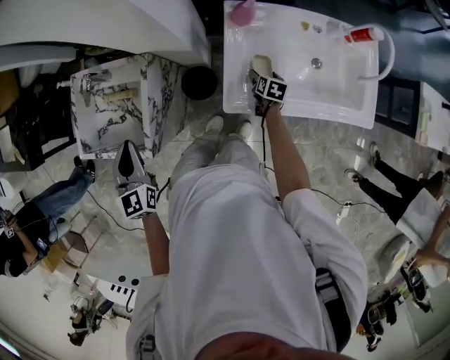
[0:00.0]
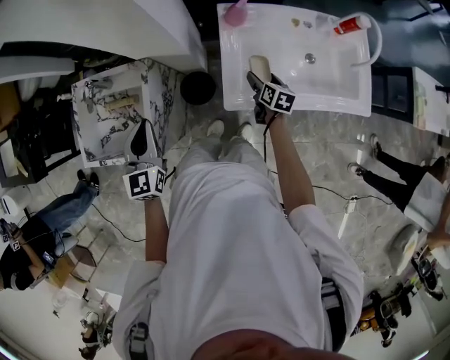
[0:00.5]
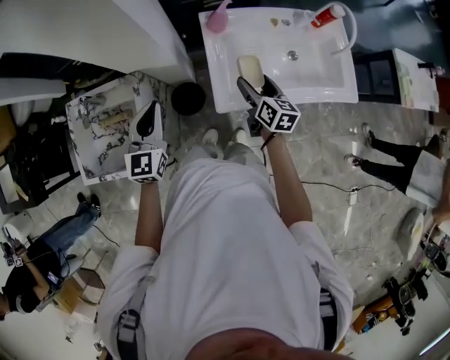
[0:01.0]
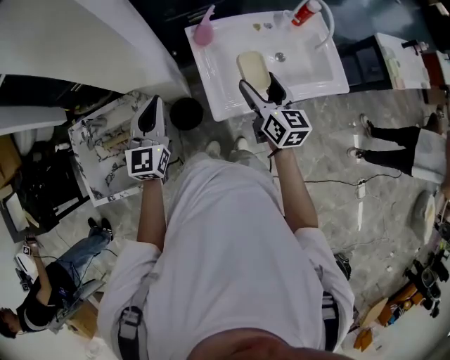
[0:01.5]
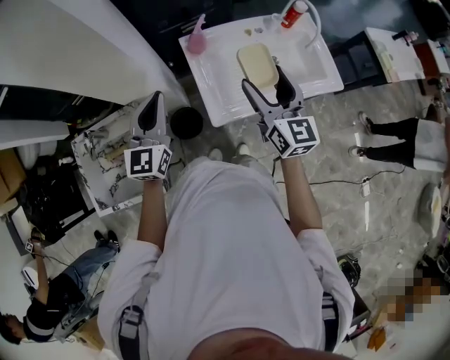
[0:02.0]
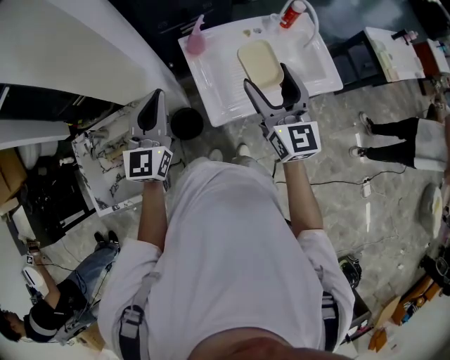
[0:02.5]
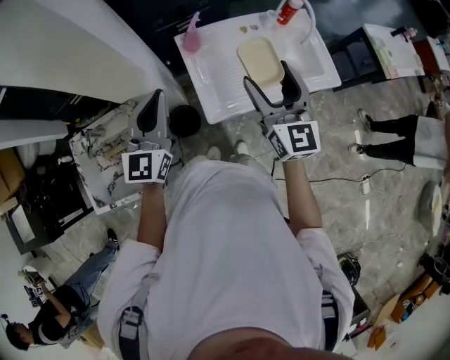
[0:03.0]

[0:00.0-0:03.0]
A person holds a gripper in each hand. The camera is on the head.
0:00.0 to 0:01.5: The right gripper moves upward, approximately 35 cm, and points its fingers about 40 degrees further upward; the left gripper moves to the right and forward, approximately 20 cm, and swivels roughly 40 degrees.
0:01.5 to 0:03.0: The left gripper goes about 10 cm upward and to the right; the right gripper moves upward, some 10 cm, and changes its angle by some 30 degrees.

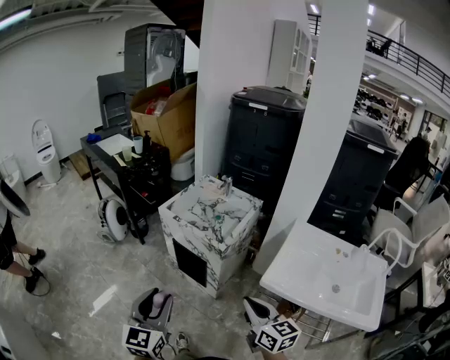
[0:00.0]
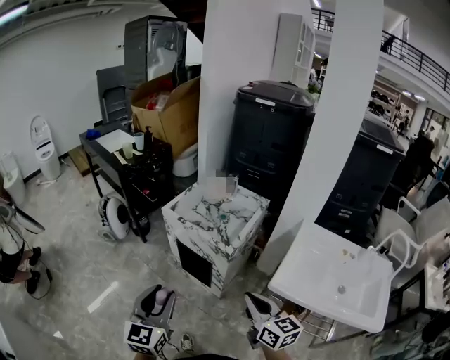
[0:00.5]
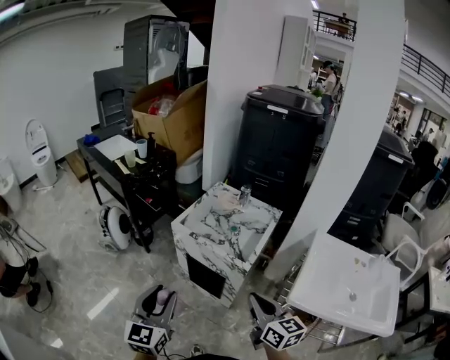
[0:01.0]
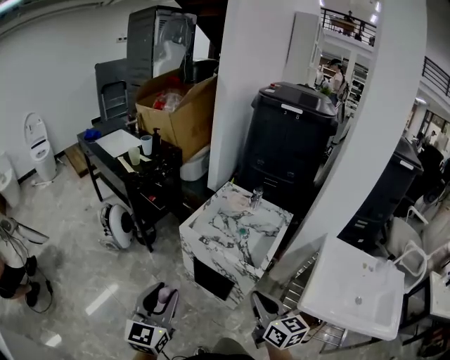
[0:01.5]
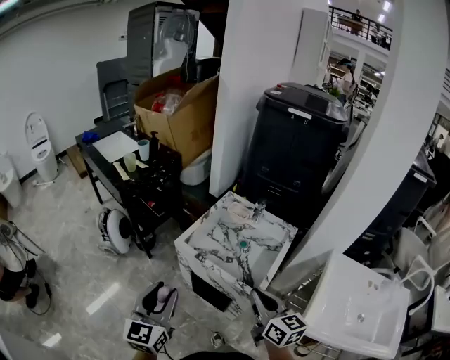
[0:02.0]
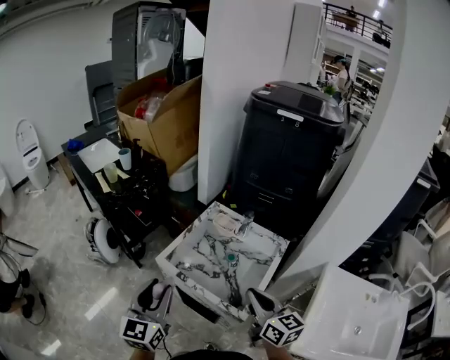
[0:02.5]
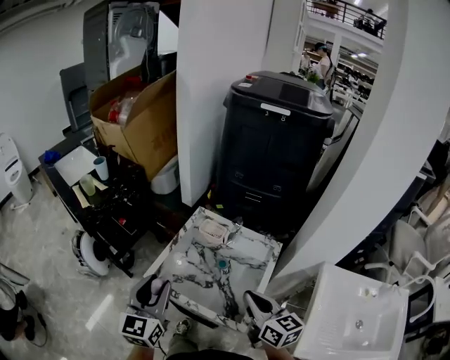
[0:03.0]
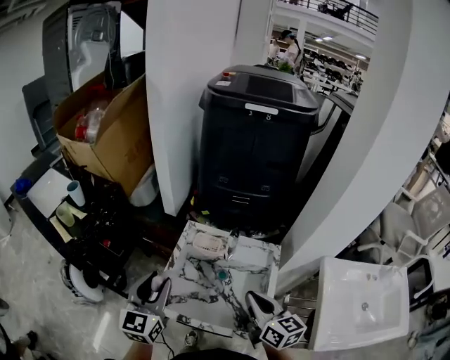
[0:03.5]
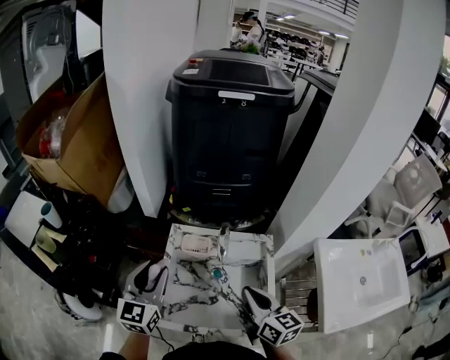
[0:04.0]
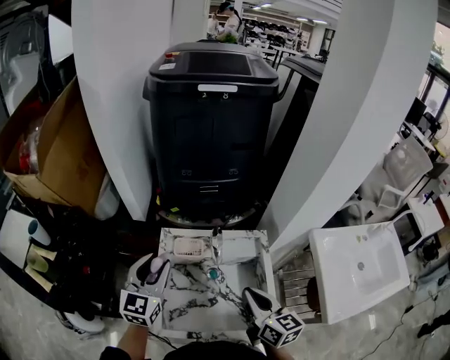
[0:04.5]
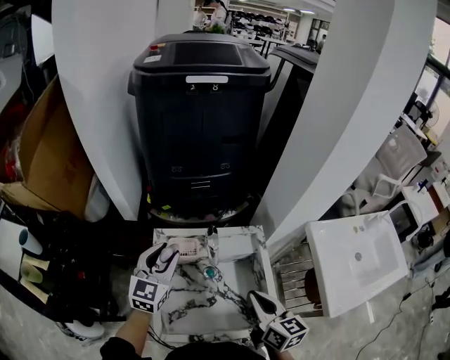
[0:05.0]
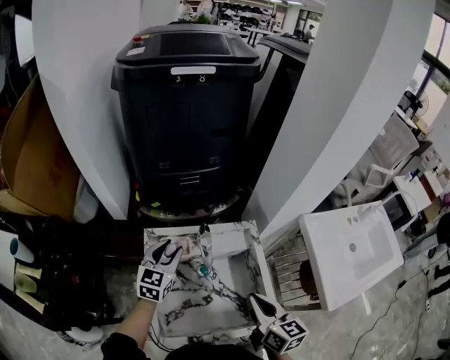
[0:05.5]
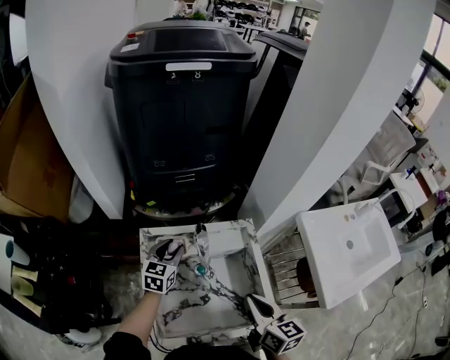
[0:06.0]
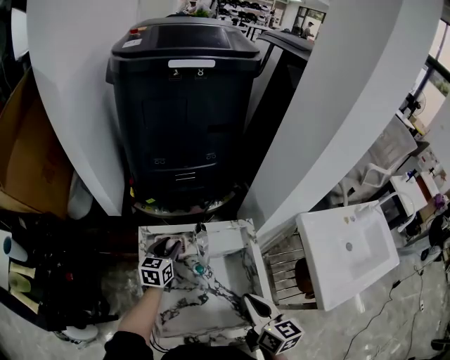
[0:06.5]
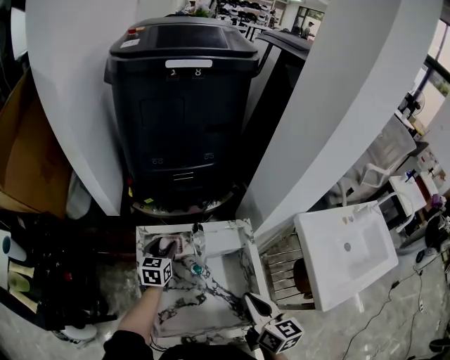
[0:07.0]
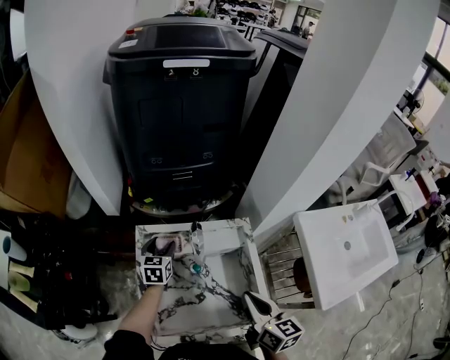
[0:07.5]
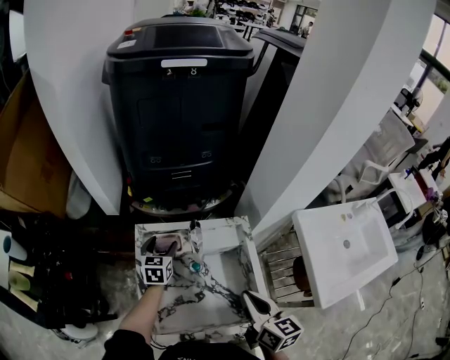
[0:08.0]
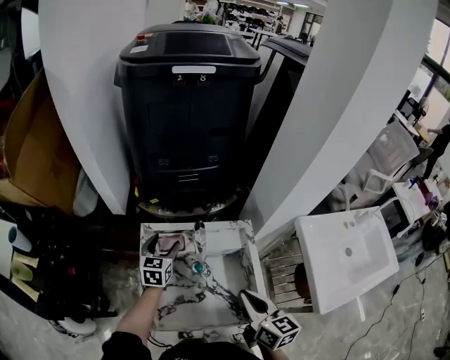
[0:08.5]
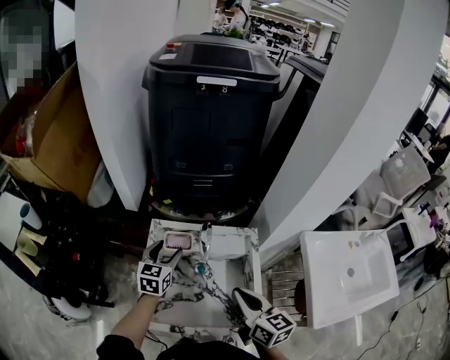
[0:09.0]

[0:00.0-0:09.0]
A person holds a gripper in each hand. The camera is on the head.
0:00.0 to 0:02.0: Both grippers travel together forward, some 30 cm.
0:02.0 to 0:04.5: The left gripper moves approximately 50 cm, and rotates roughly 40 degrees. Meanwhile the right gripper ends up approximately 25 cm from where it was, and rotates roughly 30 degrees.
0:04.5 to 0:07.0: The left gripper is displaced downward and forward by approximately 25 cm, and rotates approximately 30 degrees.
0:07.0 to 0:09.0: The left gripper goes approximately 10 cm upward and backward, and opens up.

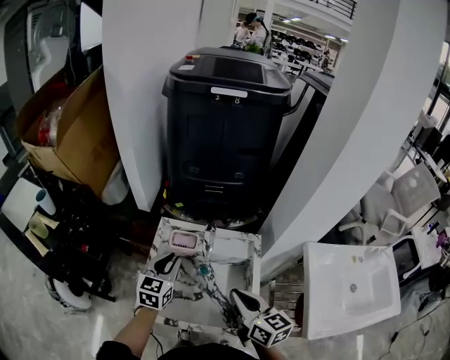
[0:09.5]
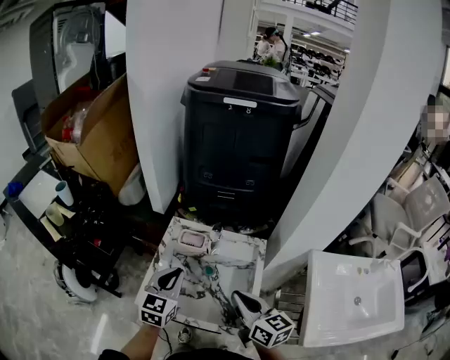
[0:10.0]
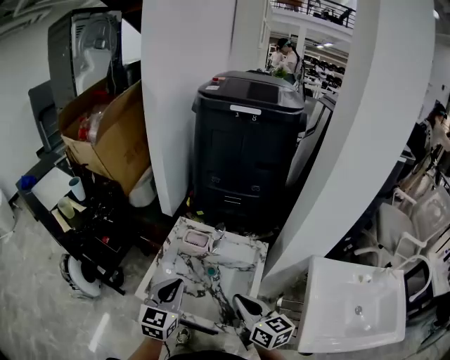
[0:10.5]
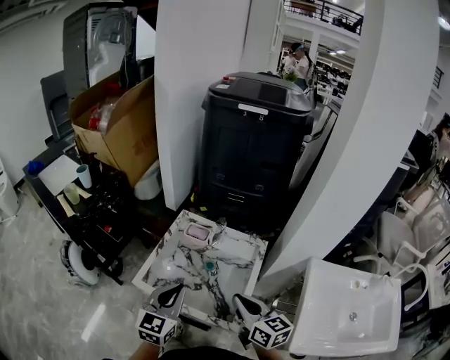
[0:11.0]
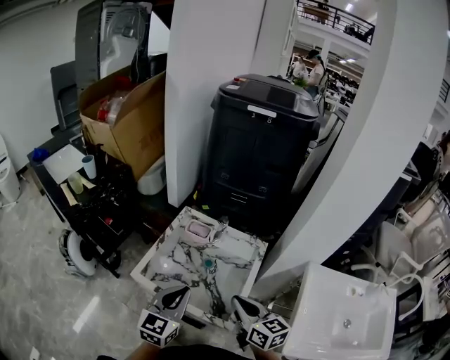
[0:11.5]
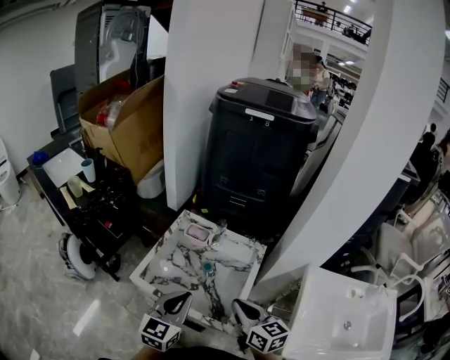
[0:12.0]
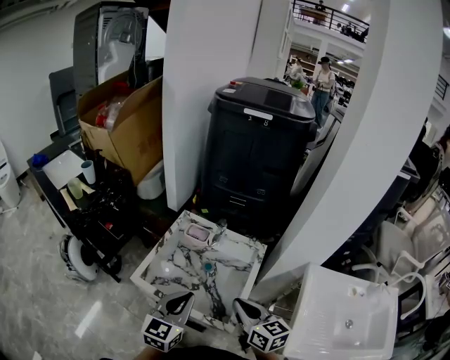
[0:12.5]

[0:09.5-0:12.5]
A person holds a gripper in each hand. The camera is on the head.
0:09.5 to 0:11.0: The left gripper heads backward, covering approximately 20 cm. The right gripper travels backward by approximately 5 cm.
0:11.0 to 0:12.5: The grippers stay close to where they were, moving slightly.

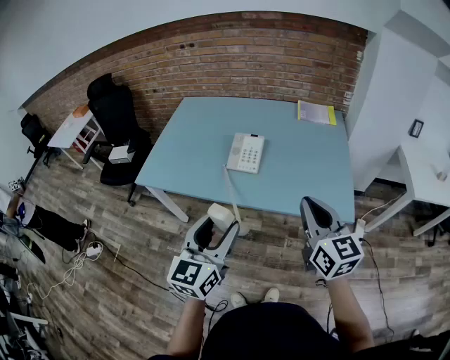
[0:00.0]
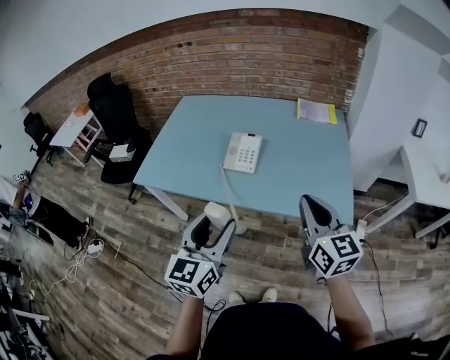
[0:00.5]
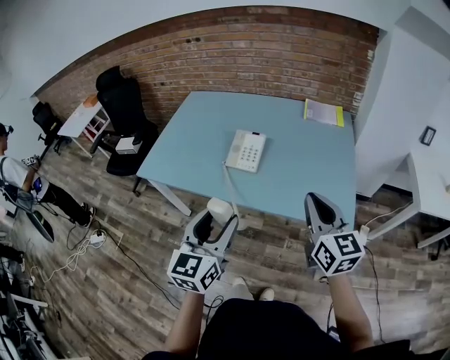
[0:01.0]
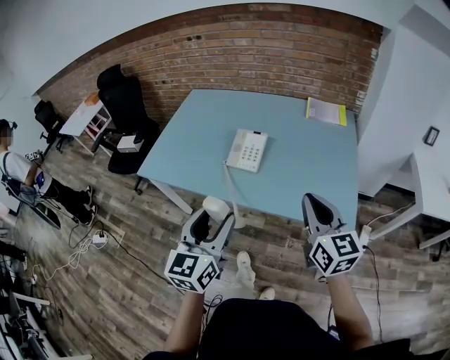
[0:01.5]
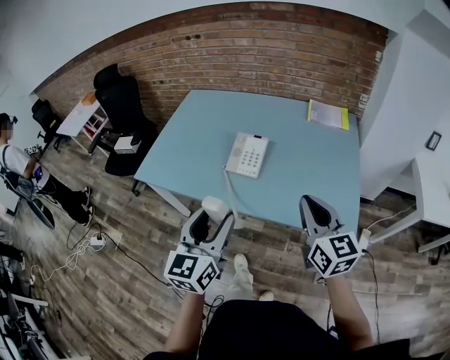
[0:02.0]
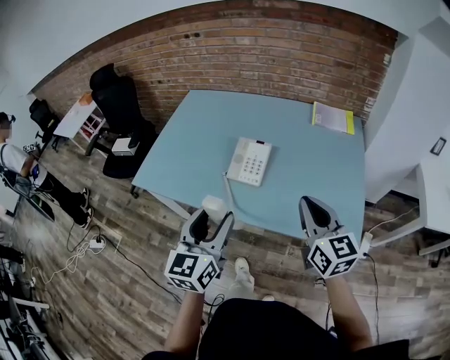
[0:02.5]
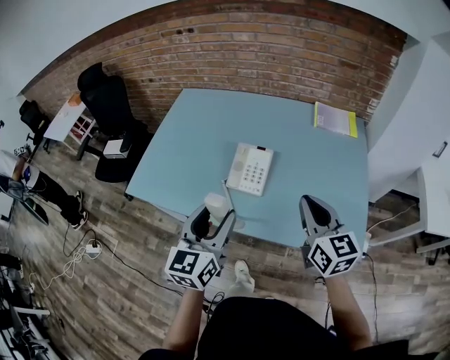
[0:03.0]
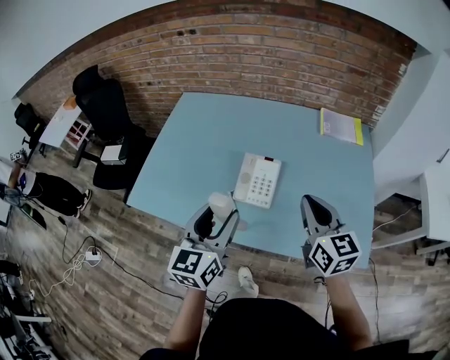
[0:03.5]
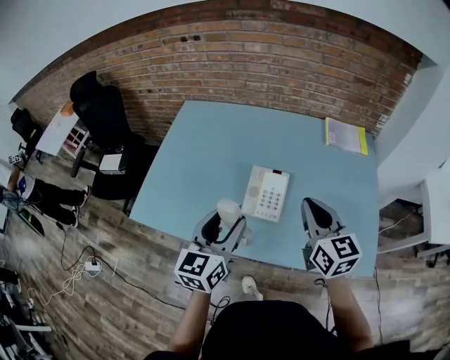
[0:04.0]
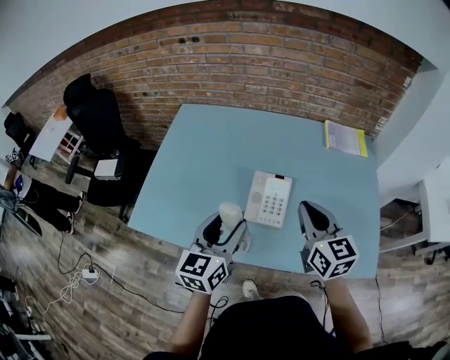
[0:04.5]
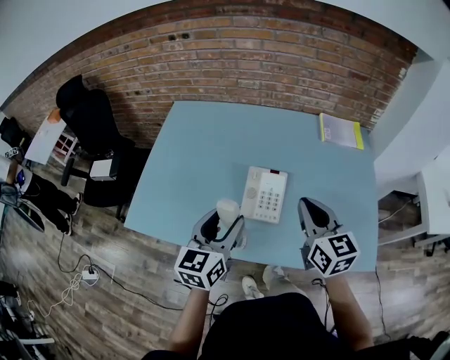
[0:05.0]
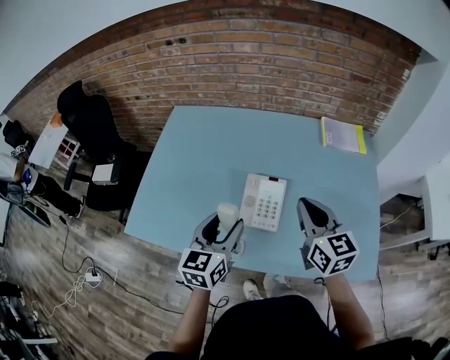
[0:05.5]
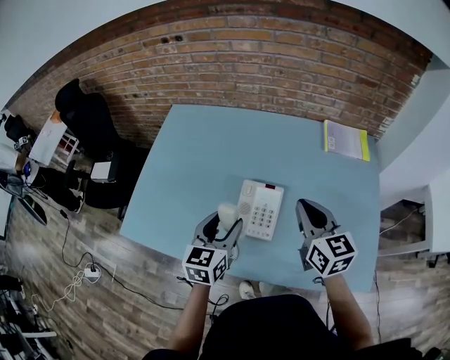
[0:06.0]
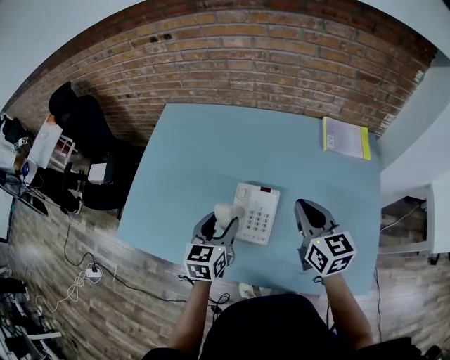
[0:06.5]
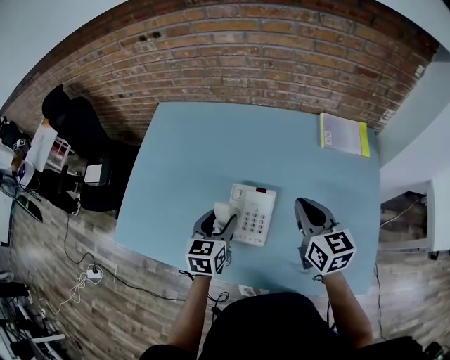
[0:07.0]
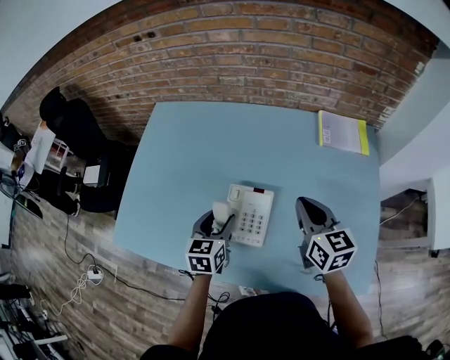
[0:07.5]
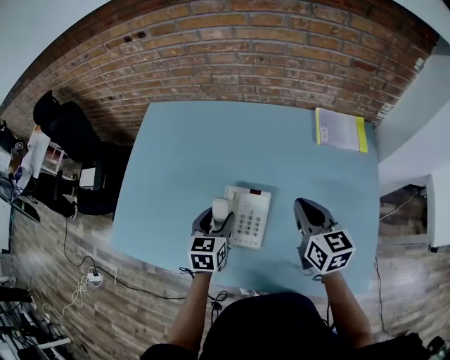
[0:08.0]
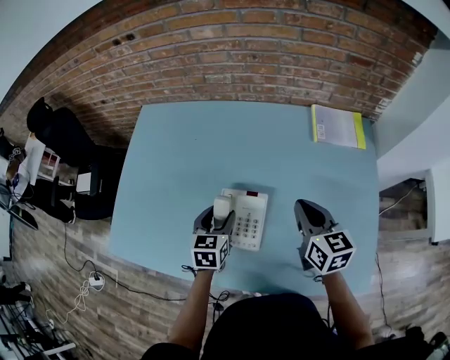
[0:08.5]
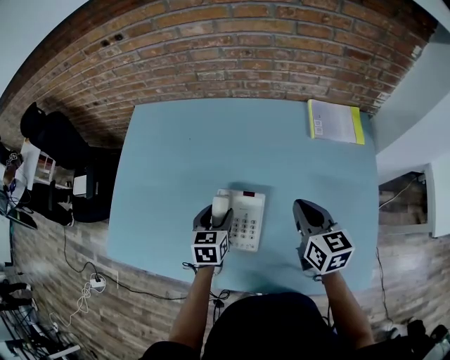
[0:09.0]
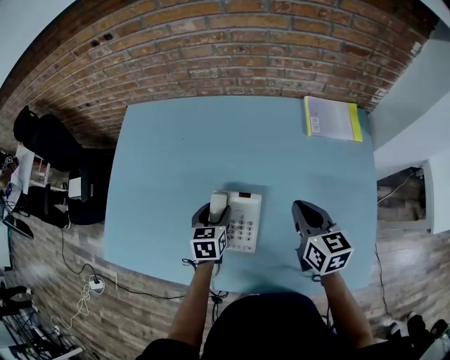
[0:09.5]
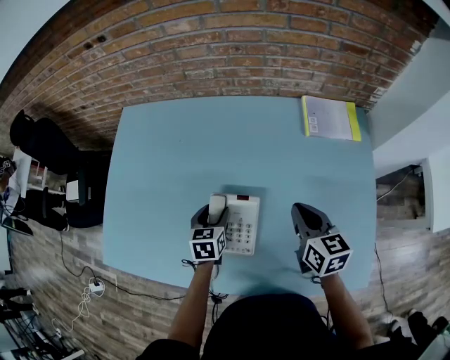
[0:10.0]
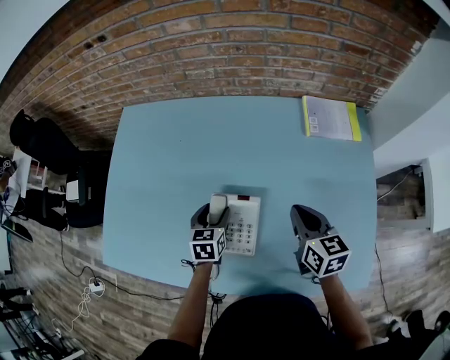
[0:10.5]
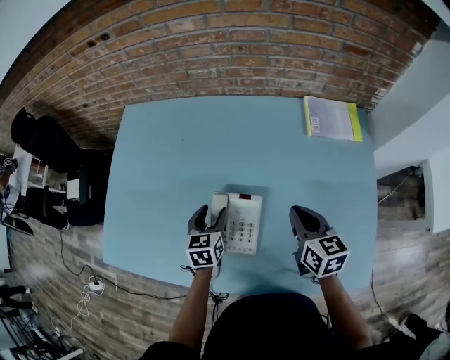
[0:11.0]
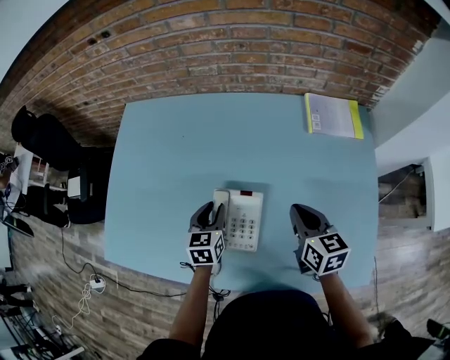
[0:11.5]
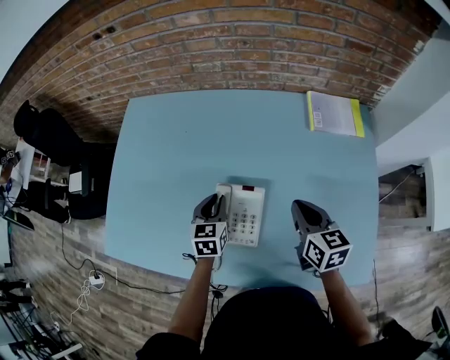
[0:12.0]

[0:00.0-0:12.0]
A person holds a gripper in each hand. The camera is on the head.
0:00.0 to 0:02.0: The two grippers go about 10 cm forward.
0:02.0 to 0:04.0: The left gripper moves forward, about 25 cm, while the right gripper moves forward and to the left, some 25 cm.
0:04.0 to 0:06.0: The right gripper moves forward, approximately 10 cm; the left gripper is displaced forward and downward by about 15 cm.
0:06.0 to 0:08.0: The right gripper shifts about 10 cm downward, forward and to the right, while the left gripper moves downward and forward, about 15 cm.
0:08.0 to 0:10.0: The right gripper goes about 5 cm downward; the left gripper is displaced downward and forward by some 10 cm.
0:10.0 to 0:12.0: The left gripper closes its fingers.
